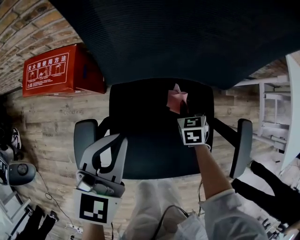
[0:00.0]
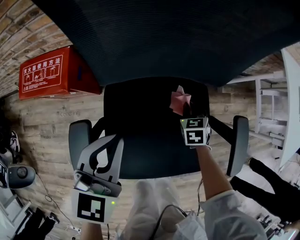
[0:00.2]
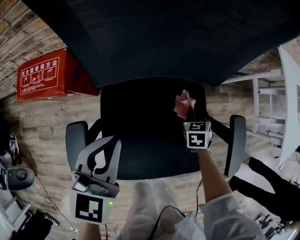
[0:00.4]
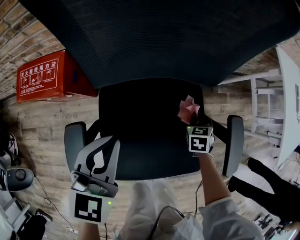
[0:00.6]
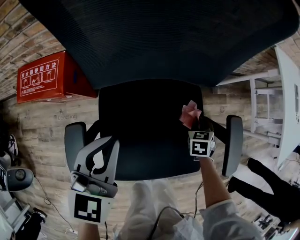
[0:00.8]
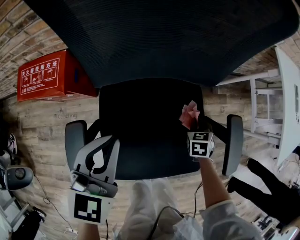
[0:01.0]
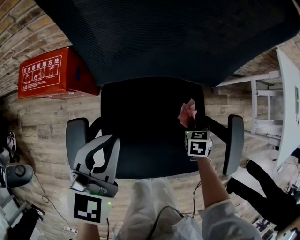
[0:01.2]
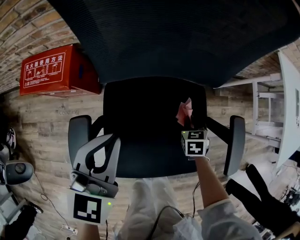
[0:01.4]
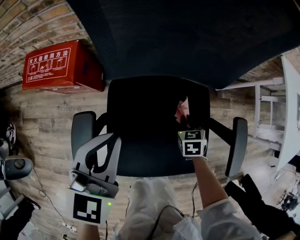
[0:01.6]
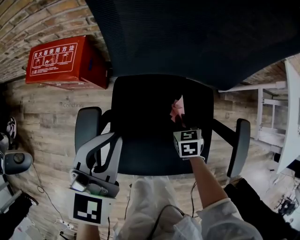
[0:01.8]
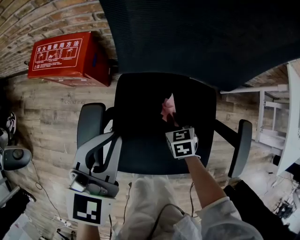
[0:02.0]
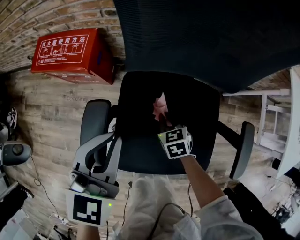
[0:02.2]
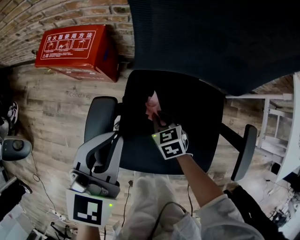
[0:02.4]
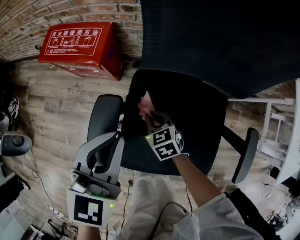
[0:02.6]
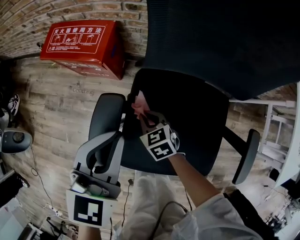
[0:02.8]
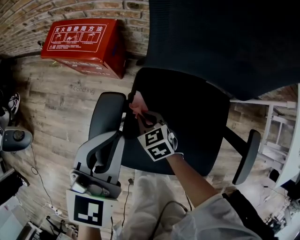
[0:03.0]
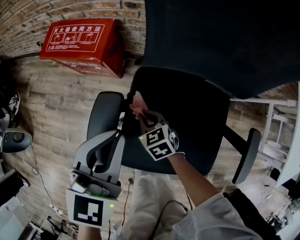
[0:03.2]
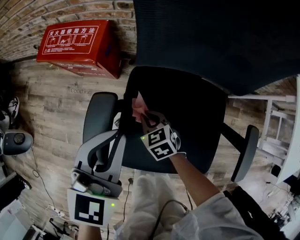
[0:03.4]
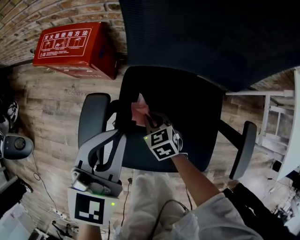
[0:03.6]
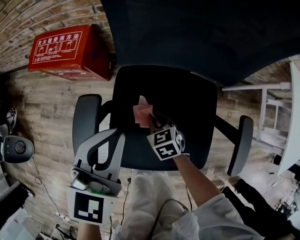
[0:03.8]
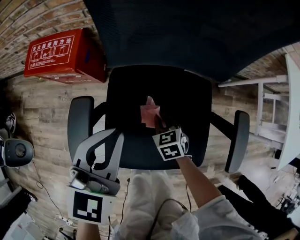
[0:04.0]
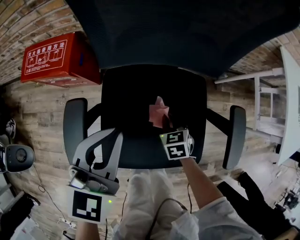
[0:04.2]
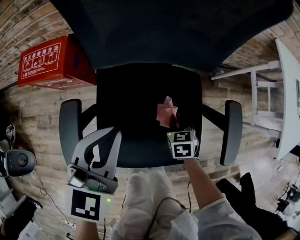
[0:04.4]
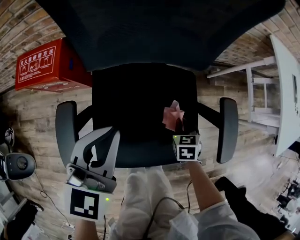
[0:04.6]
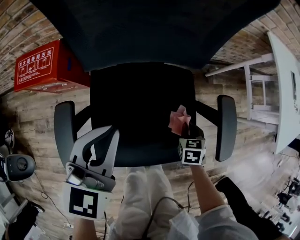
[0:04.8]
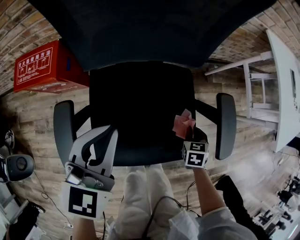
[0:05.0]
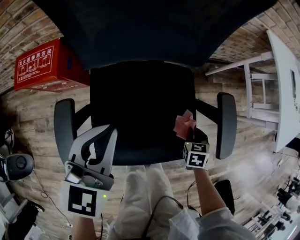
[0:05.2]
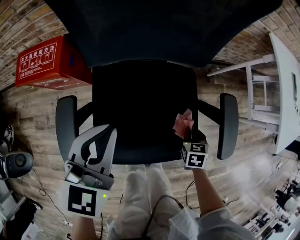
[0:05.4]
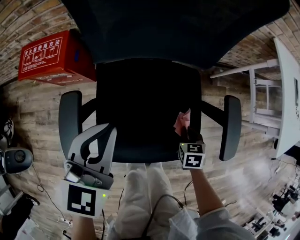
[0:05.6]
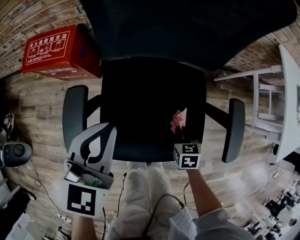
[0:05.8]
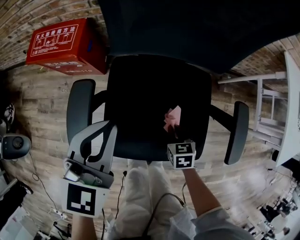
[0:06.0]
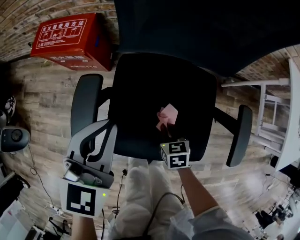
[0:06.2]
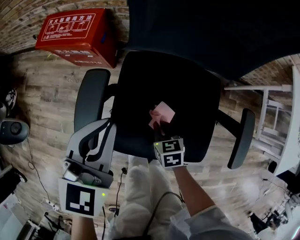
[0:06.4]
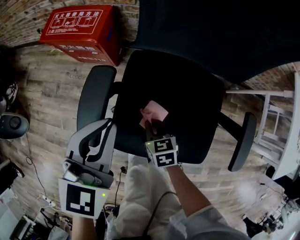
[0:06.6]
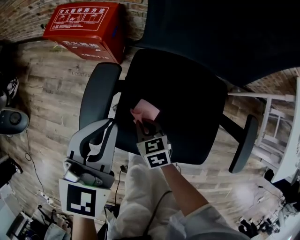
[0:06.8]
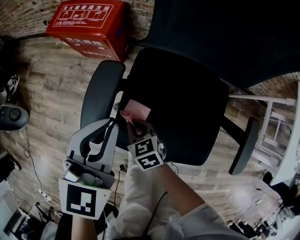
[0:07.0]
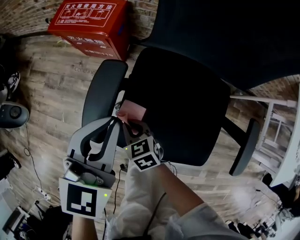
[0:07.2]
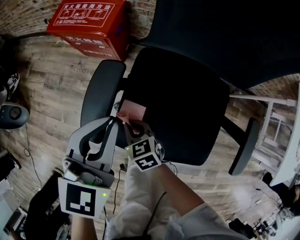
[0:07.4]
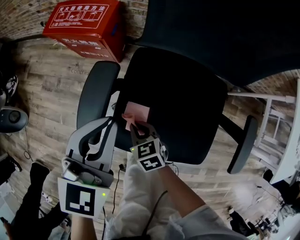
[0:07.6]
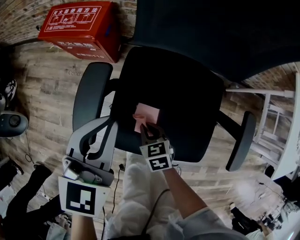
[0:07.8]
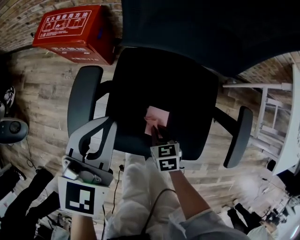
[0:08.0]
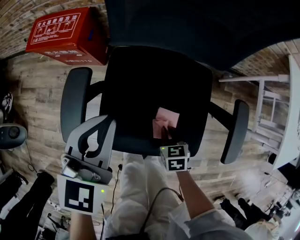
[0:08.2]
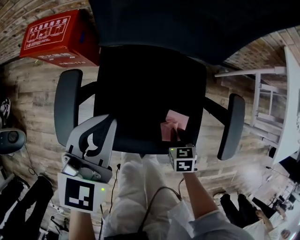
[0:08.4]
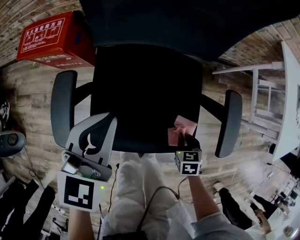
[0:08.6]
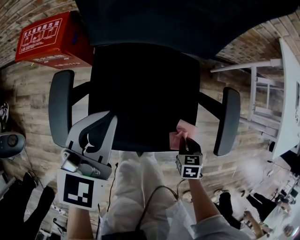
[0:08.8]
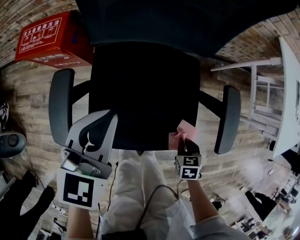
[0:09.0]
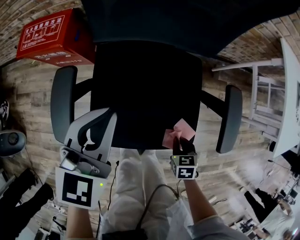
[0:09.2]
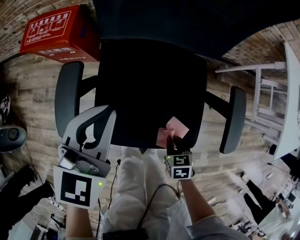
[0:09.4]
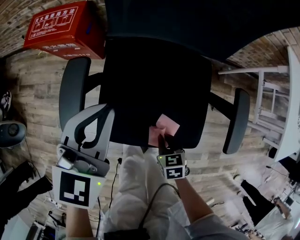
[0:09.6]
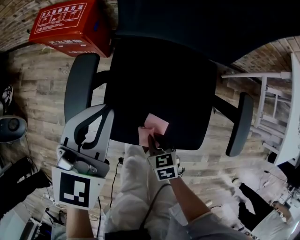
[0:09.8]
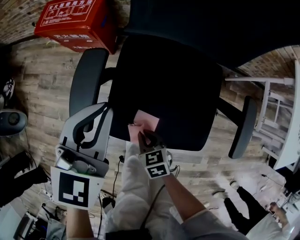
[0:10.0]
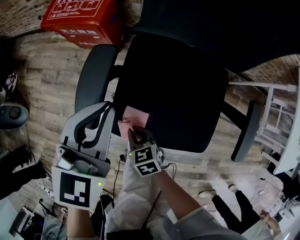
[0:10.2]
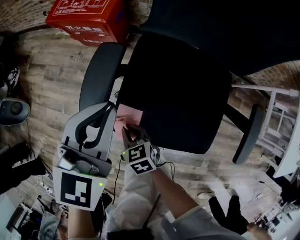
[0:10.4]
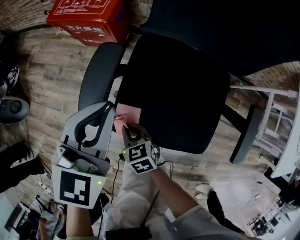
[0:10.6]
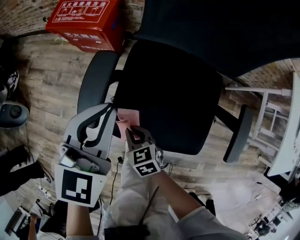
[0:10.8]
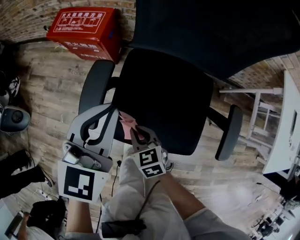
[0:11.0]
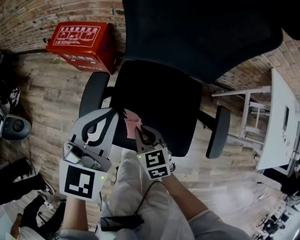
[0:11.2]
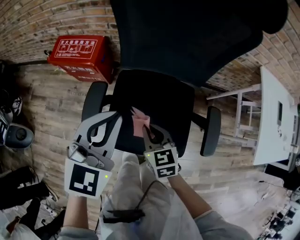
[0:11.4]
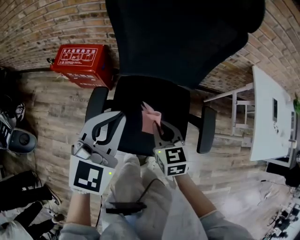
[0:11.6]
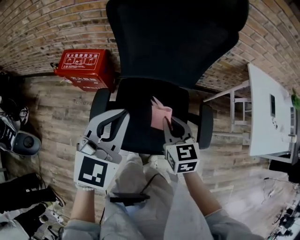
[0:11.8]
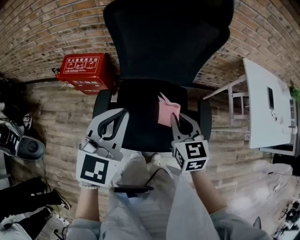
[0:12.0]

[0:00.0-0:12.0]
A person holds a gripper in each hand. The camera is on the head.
0.0 to 1.6 s: The right gripper moves backward, some 5 cm, and reaches about 15 cm to the right, then returns.
1.6 to 3.0 s: The right gripper changes place by about 30 cm, and changes its angle by roughly 40 degrees. Meanwhile the left gripper ends up about 10 cm from where it was.
3.0 to 4.4 s: The right gripper changes place by some 30 cm, and turns by some 40 degrees. Meanwhile the left gripper moves approximately 15 cm.
4.4 to 6.0 s: The left gripper moves roughly 5 cm. Meanwhile the right gripper shifts roughly 10 cm backward, and moves roughly 15 cm to the right and comes back.
6.0 to 7.6 s: The left gripper shifts by approximately 5 cm. Meanwhile the right gripper ends up approximately 20 cm from where it was, and rotates approximately 30 degrees.
7.6 to 9.0 s: The left gripper shifts by about 15 cm; the right gripper moves approximately 35 cm, and changes its angle by about 40 degrees.
9.0 to 10.4 s: The right gripper shifts by some 40 cm, and changes its angle by some 40 degrees. Meanwhile the left gripper moves some 15 cm.
10.4 to 12.0 s: The grippers both shift upward by about 35 cm. The left gripper turns by some 20 degrees; the right gripper rotates some 40 degrees.

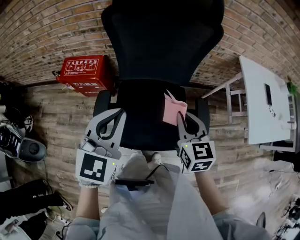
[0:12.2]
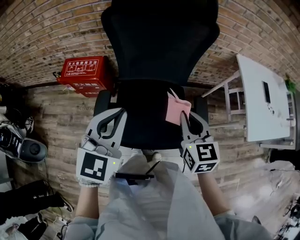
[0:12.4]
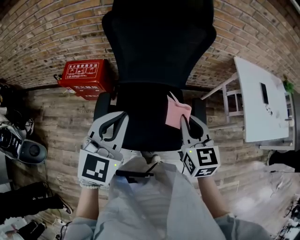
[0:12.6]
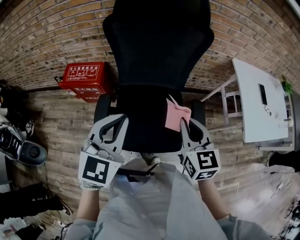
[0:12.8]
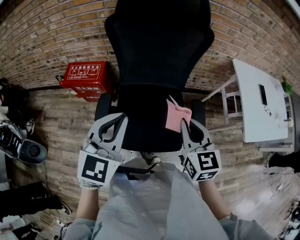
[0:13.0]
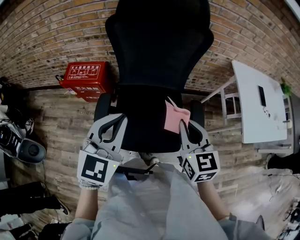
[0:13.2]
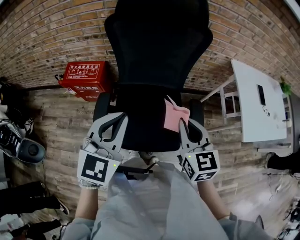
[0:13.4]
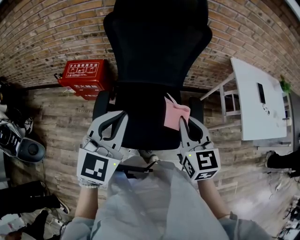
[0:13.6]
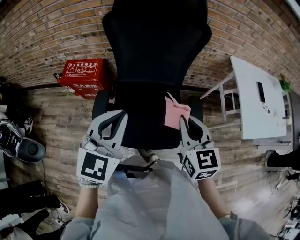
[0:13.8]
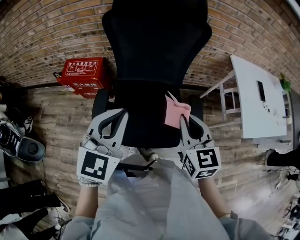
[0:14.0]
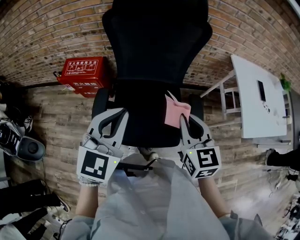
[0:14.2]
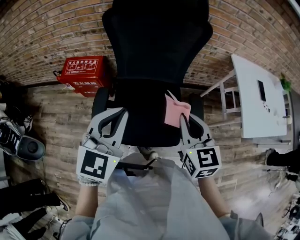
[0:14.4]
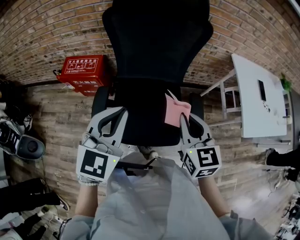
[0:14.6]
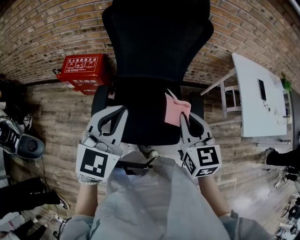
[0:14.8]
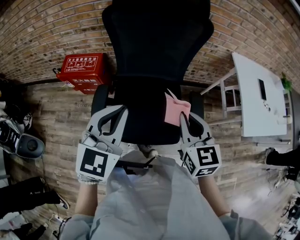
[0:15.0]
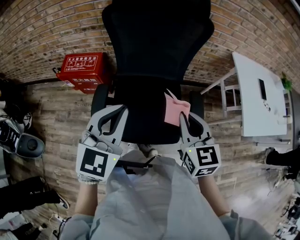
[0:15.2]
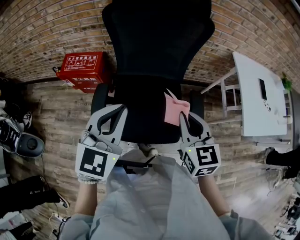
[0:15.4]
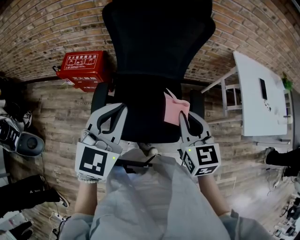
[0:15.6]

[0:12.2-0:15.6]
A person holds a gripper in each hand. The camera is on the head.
12.2 to 13.8 s: The right gripper shifts approximately 10 cm backward and upward. The left gripper is displaced backward by about 5 cm.
13.8 to 15.6 s: The grippers stay close to where they were, moving slightly.

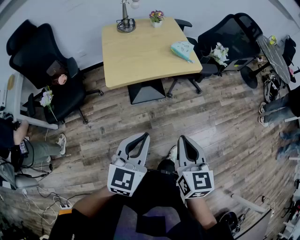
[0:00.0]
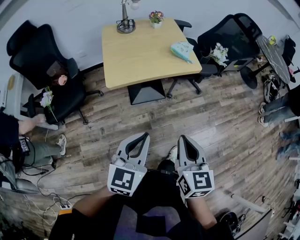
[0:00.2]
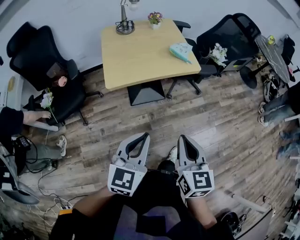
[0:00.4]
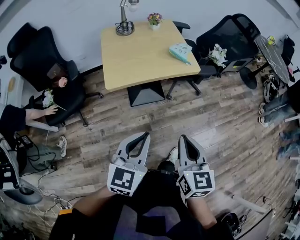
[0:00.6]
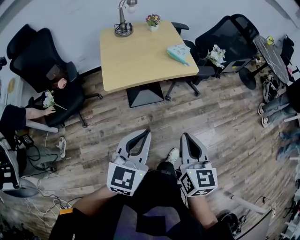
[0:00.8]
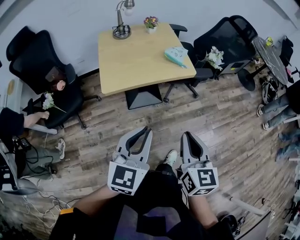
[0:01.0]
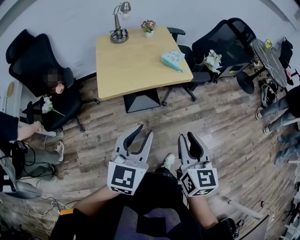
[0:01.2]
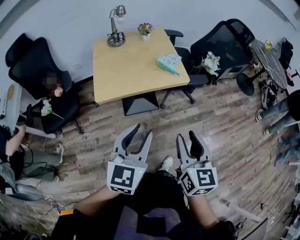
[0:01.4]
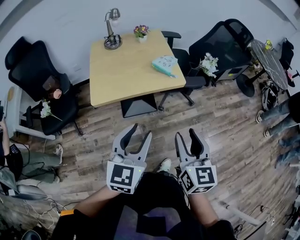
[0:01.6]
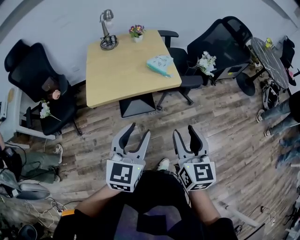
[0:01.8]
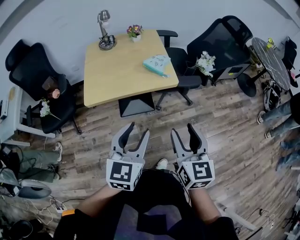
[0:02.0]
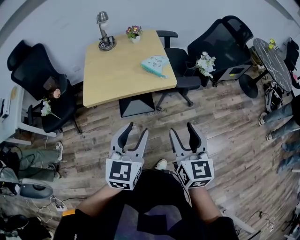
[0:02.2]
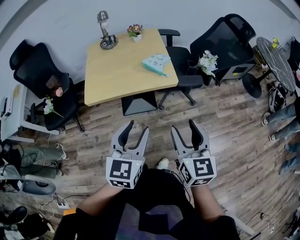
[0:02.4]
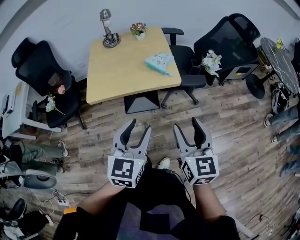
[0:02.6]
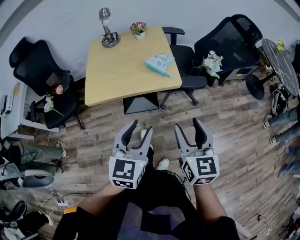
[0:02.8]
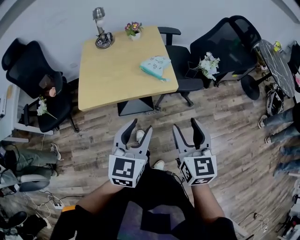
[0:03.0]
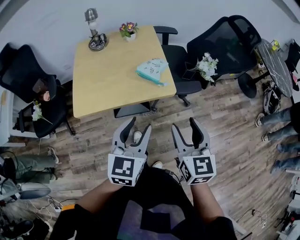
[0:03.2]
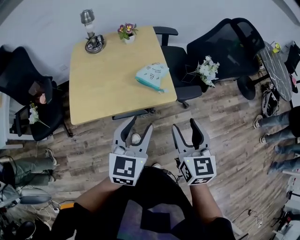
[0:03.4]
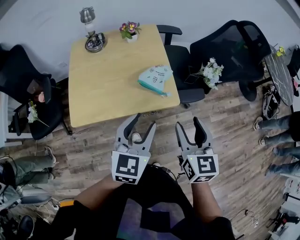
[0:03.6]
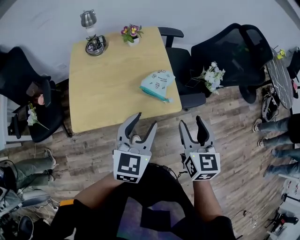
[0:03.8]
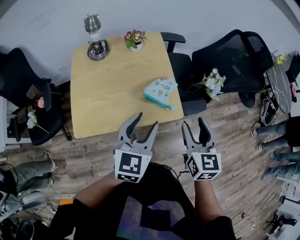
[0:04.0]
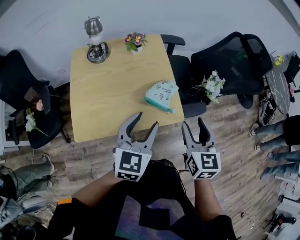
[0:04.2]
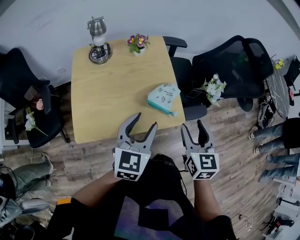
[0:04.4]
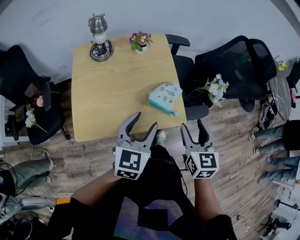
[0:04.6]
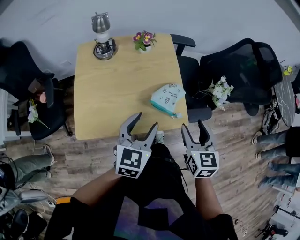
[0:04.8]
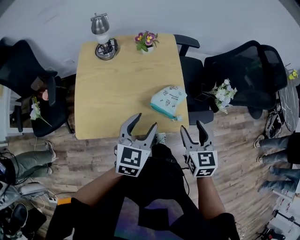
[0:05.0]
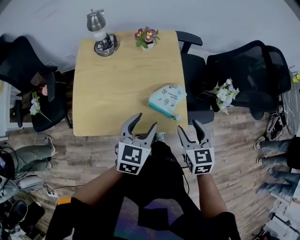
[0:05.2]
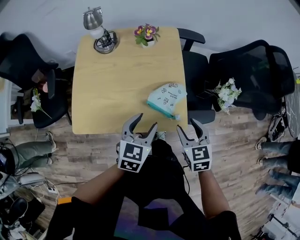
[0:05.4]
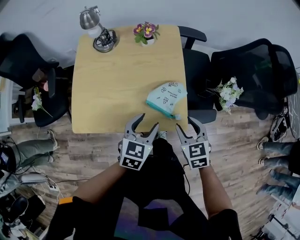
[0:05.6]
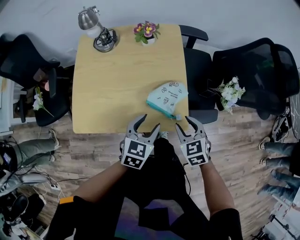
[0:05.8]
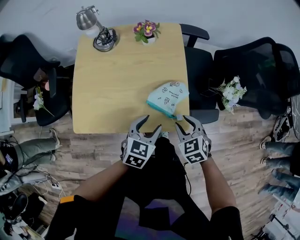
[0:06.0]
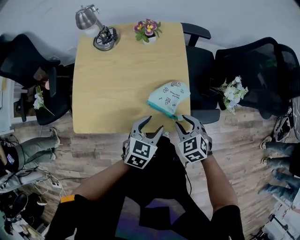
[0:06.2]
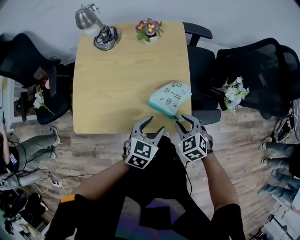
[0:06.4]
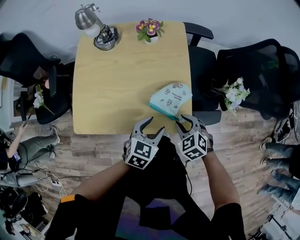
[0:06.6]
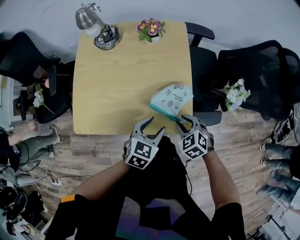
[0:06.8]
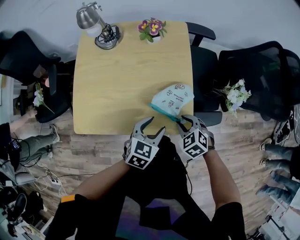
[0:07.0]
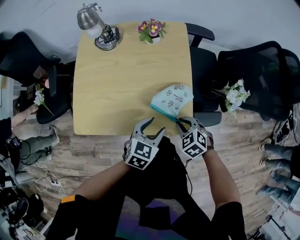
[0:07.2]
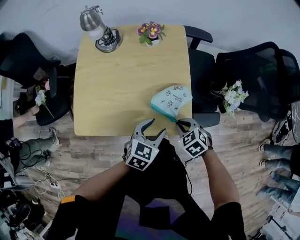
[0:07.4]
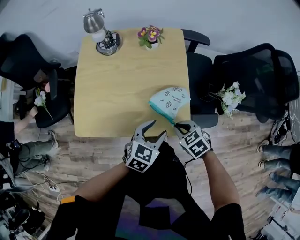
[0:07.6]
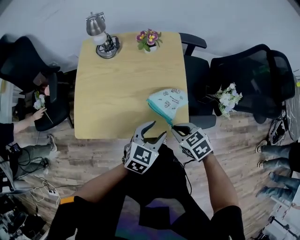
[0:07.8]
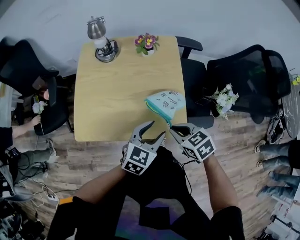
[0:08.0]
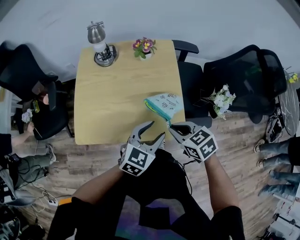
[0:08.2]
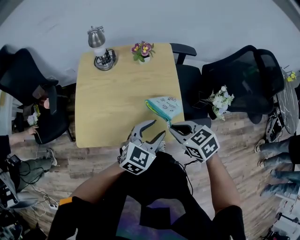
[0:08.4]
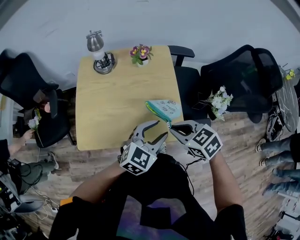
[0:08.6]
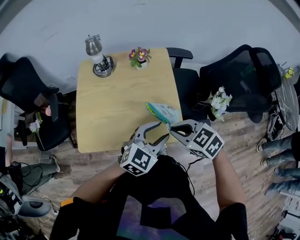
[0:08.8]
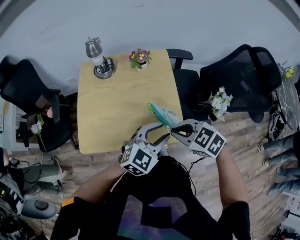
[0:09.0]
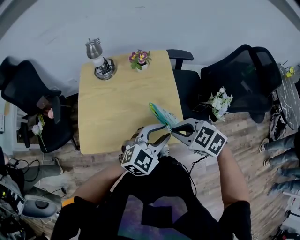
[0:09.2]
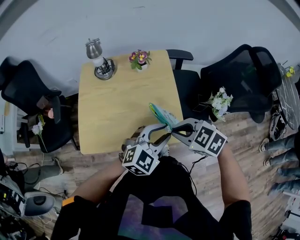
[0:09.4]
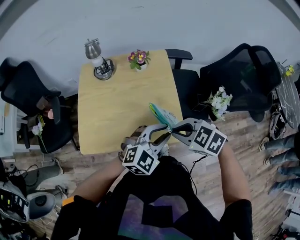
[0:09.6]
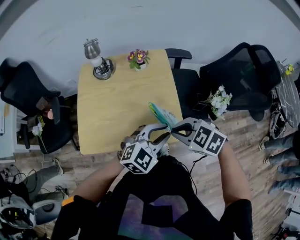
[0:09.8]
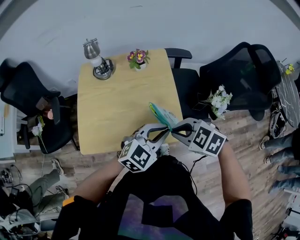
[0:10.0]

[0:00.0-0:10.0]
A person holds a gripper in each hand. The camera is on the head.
0.0 to 1.4 s: The right gripper goes roughly 10 cm to the right and forward, and opens up. The left gripper moves forward and to the right, roughly 10 cm, and opens its fingers.
1.4 to 2.8 s: Both grippers travel together to the right and forward, approximately 15 cm.
2.8 to 4.2 s: The two grippers go about 25 cm forward.
4.2 to 5.8 s: Both grippers travel together downward, approximately 15 cm. The right gripper turns by approximately 40 degrees.
5.8 to 7.2 s: The right gripper travels downward by about 5 cm, swivels roughly 20 degrees, and closes its fingers.
7.2 to 8.6 s: Both grippers move upward, some 15 cm. The right gripper swivels roughly 30 degrees; the left gripper turns by approximately 30 degrees.
8.6 to 10.0 s: The left gripper closes up; the right gripper turns by about 20 degrees.
